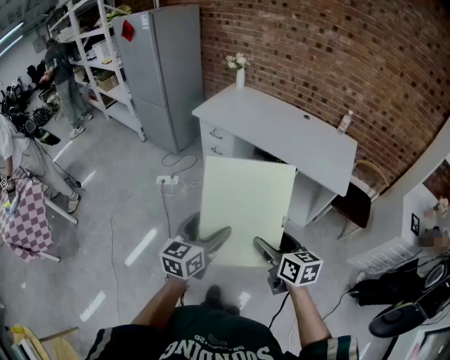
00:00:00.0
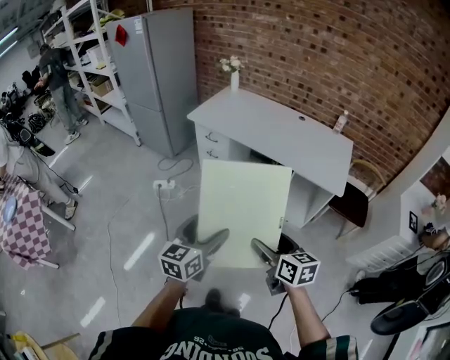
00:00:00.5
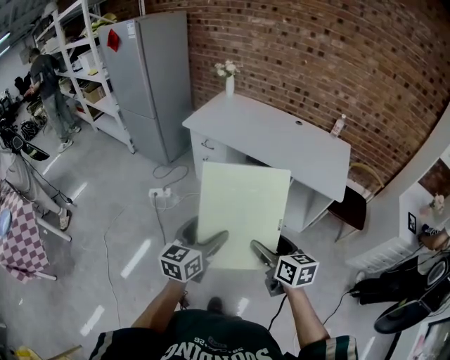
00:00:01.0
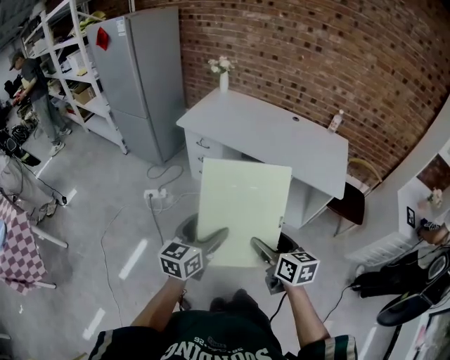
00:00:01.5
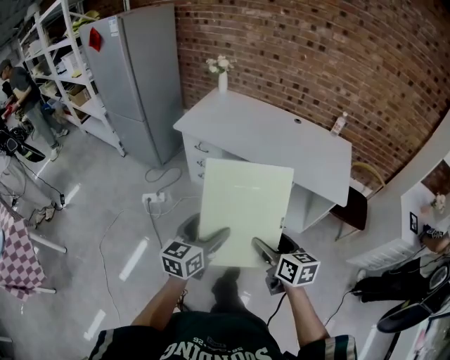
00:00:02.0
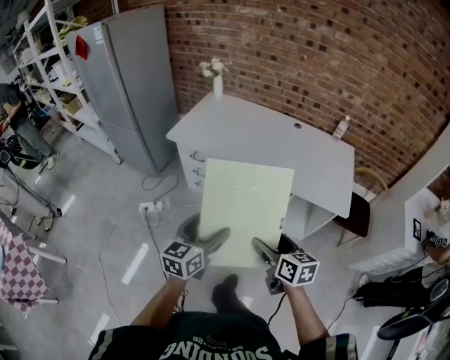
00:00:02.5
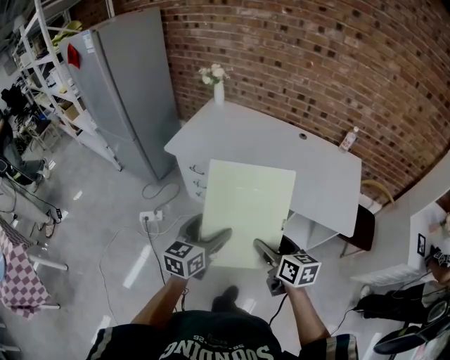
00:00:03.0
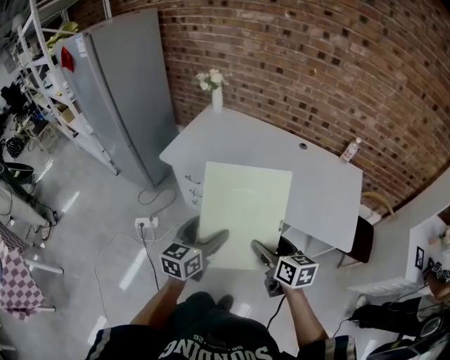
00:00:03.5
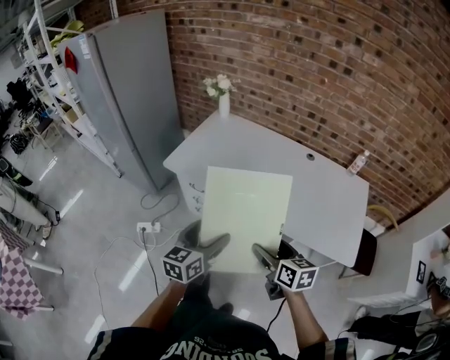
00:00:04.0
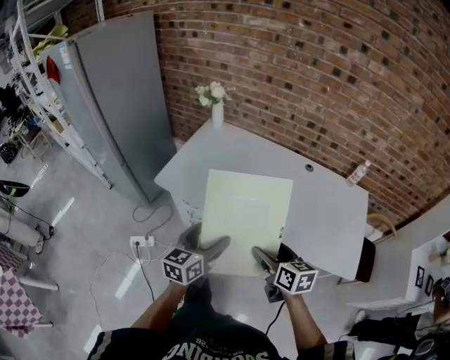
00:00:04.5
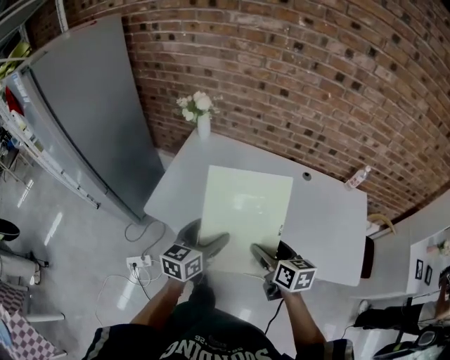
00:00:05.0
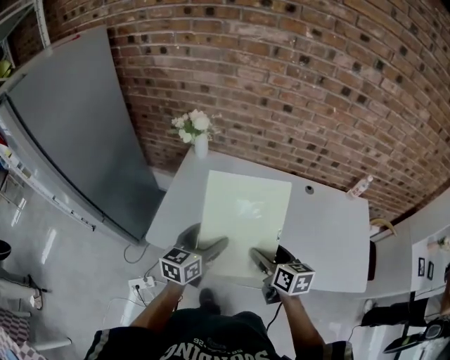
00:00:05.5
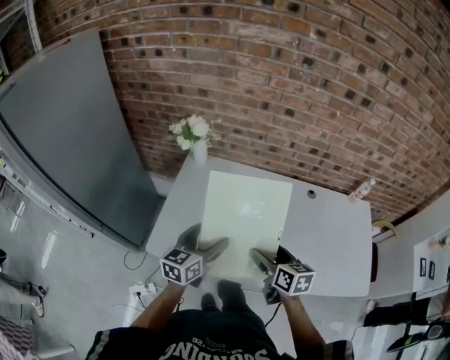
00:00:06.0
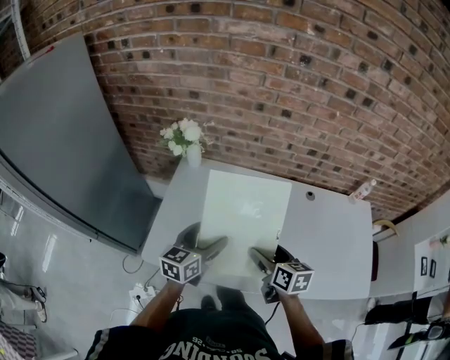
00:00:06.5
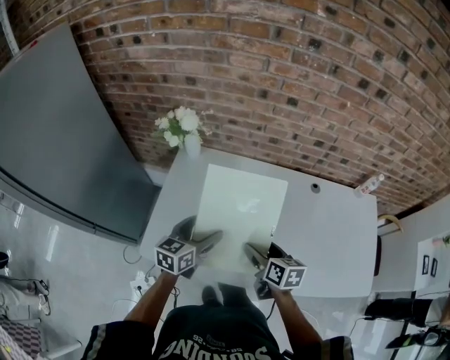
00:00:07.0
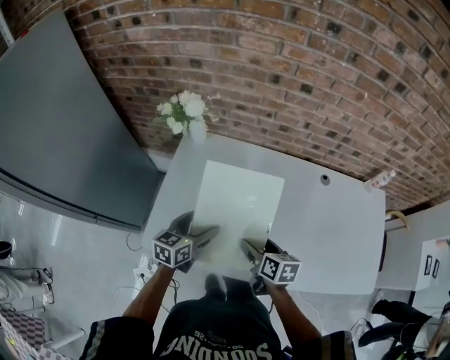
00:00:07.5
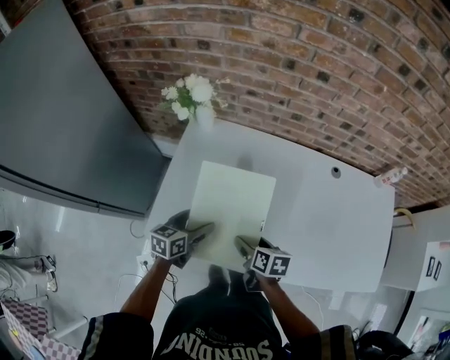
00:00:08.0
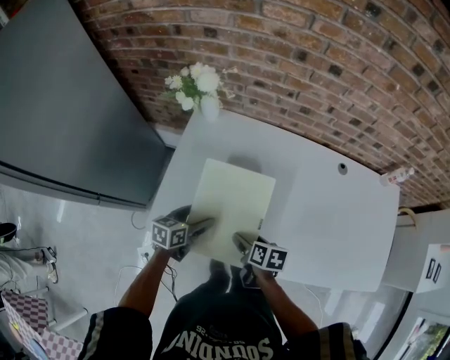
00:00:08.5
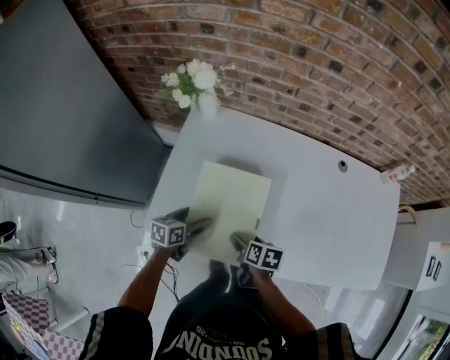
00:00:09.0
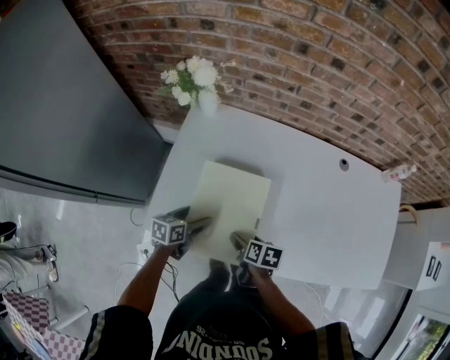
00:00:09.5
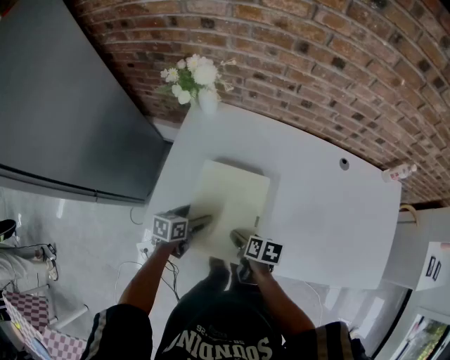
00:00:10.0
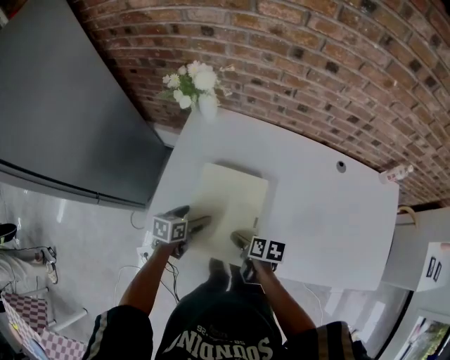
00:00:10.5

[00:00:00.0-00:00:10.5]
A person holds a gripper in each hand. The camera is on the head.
00:00:00.0 to 00:00:02.0: The grippers both shift forward by some 15 cm.
00:00:02.0 to 00:00:04.0: The grippers both shift forward by approximately 30 cm.
00:00:04.0 to 00:00:06.5: Both grippers are carried forward, roughly 40 cm.
00:00:06.5 to 00:00:08.5: The grippers both shift downward and to the left by about 20 cm. The left gripper changes its angle by about 30 degrees. The right gripper rotates some 30 degrees.
00:00:08.5 to 00:00:10.5: The grippers make only small movements.

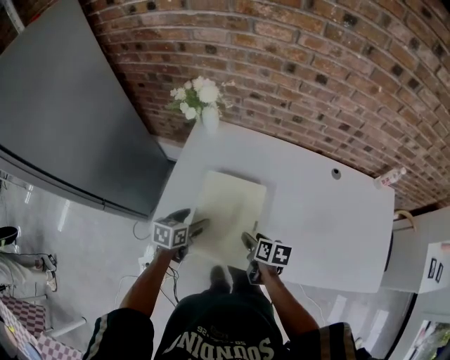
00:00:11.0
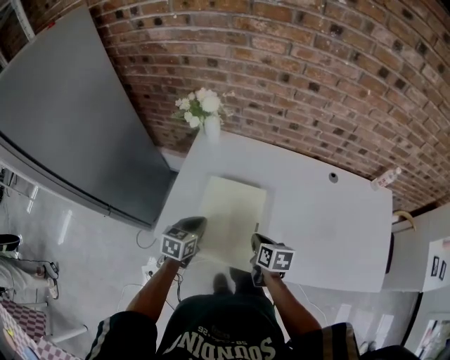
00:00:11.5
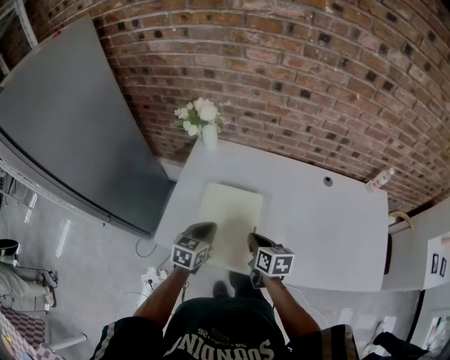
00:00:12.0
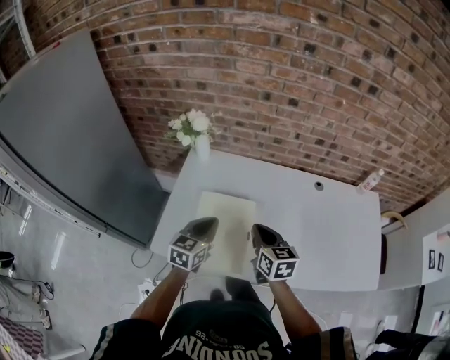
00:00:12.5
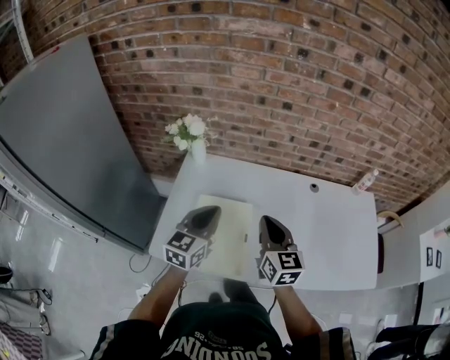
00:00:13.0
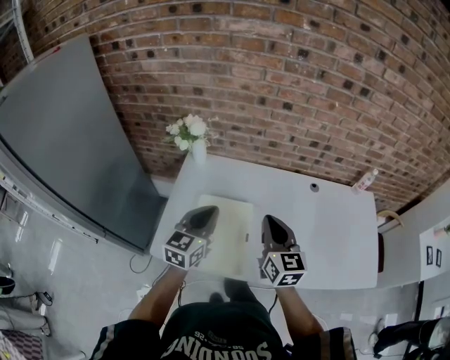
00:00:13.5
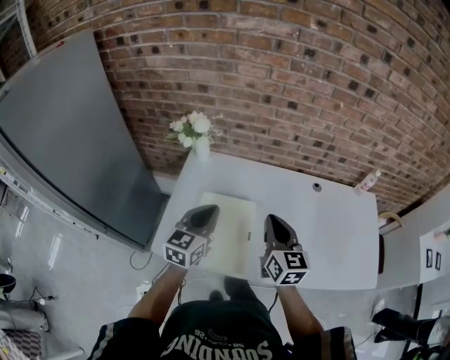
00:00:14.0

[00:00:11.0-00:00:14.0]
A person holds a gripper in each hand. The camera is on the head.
00:00:11.0 to 00:00:12.5: The right gripper goes roughly 20 cm upward, rotates some 40 degrees, and closes. The left gripper goes about 15 cm upward and to the right, changes its angle by approximately 30 degrees, and closes.
00:00:12.5 to 00:00:14.0: The grippers both shift upward by roughly 10 cm.

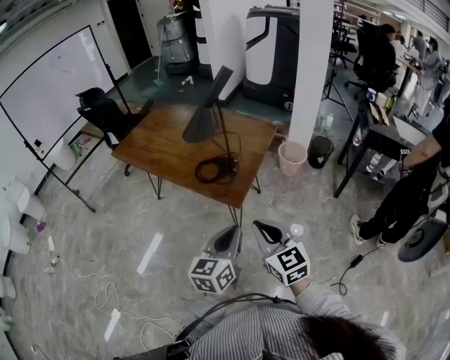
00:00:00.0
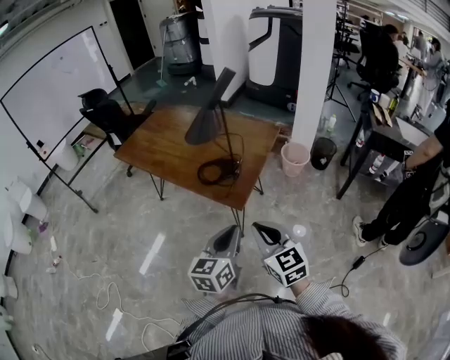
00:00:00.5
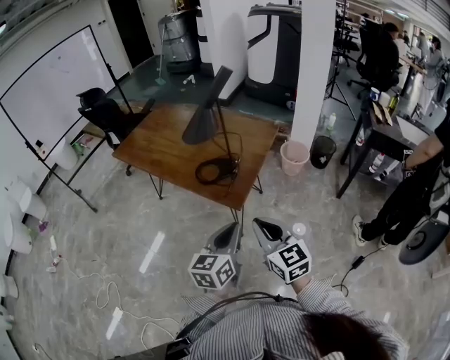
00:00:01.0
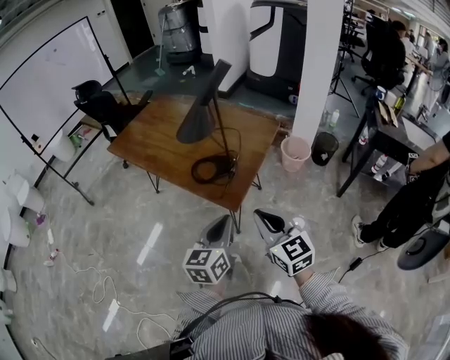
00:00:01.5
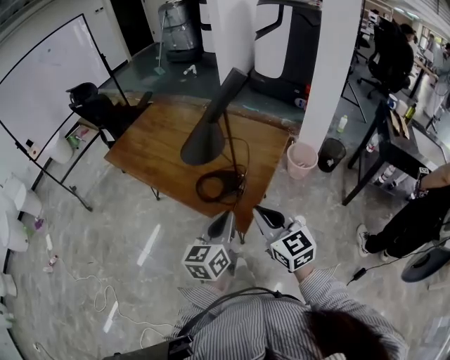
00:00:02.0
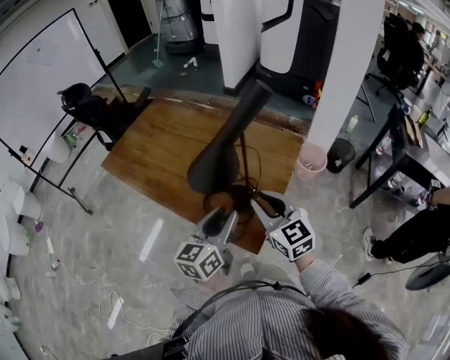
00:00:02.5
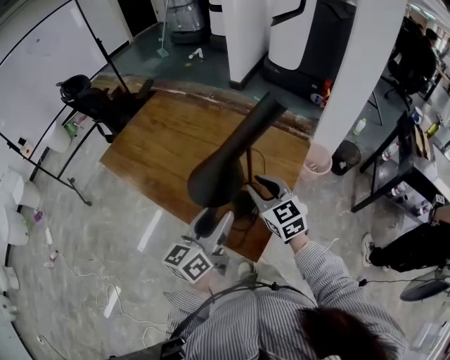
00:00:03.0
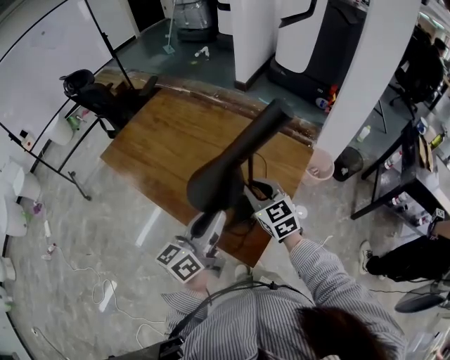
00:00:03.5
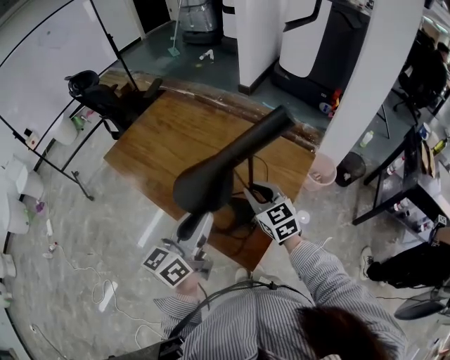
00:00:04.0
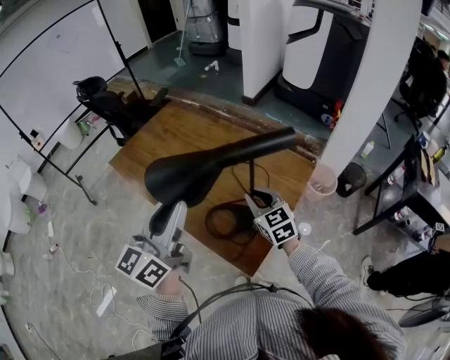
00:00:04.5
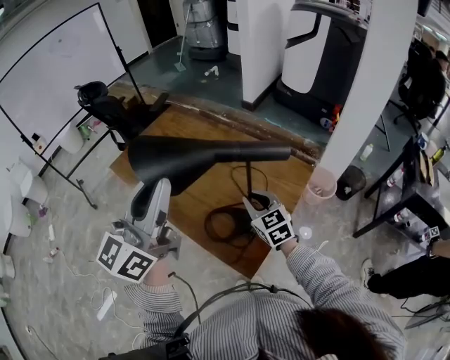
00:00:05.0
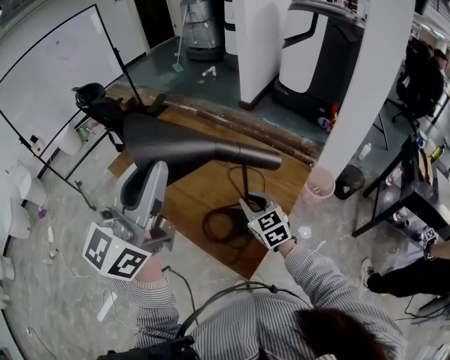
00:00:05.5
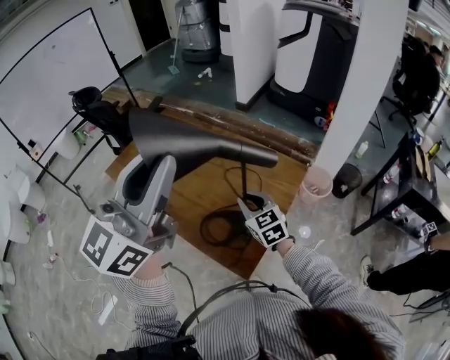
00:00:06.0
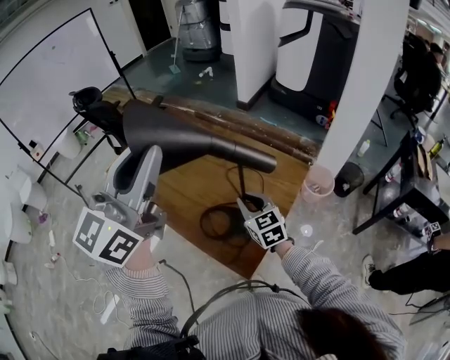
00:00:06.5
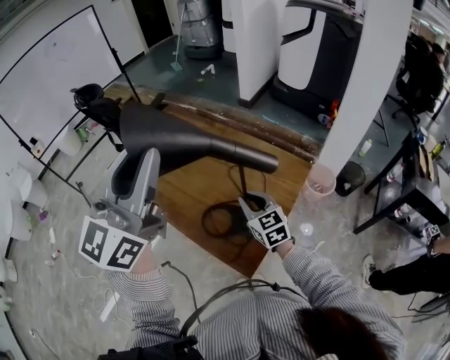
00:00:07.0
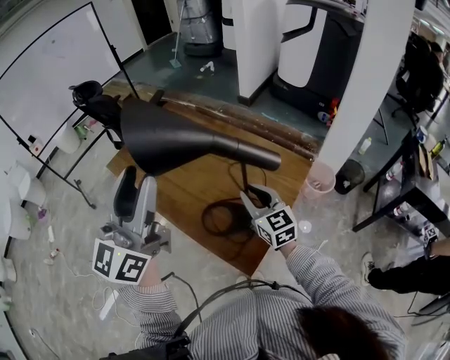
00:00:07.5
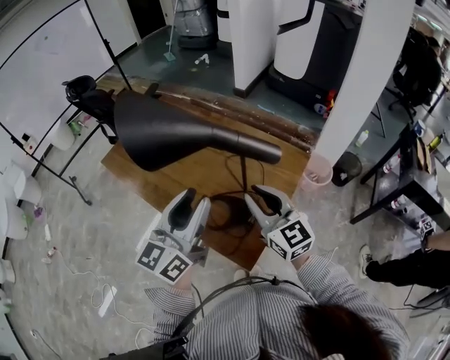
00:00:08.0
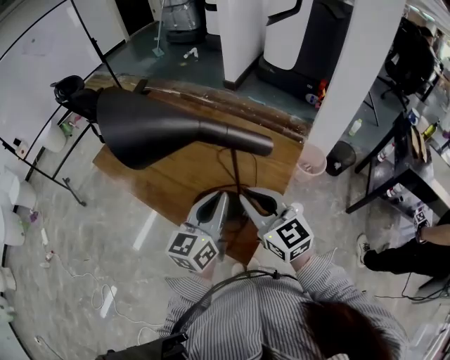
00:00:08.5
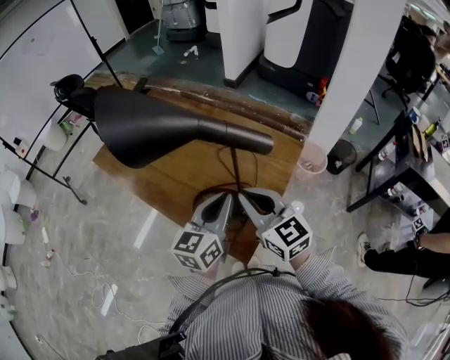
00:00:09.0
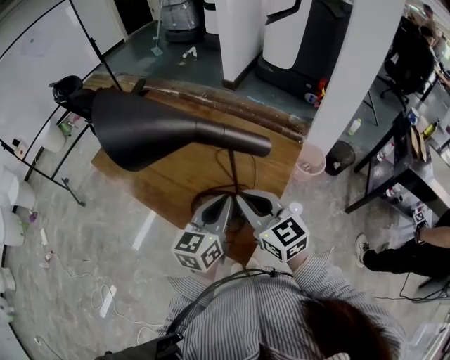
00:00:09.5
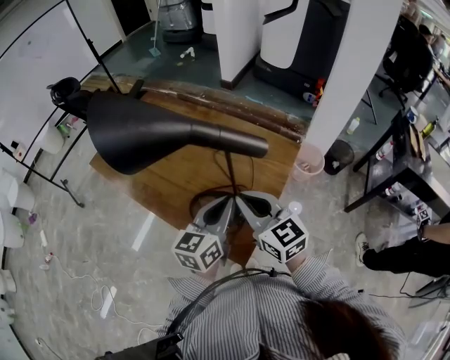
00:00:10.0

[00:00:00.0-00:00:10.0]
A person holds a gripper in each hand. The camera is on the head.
00:00:00.0 to 00:00:02.0: The two grippers go some 20 cm forward.
00:00:02.0 to 00:00:04.0: The left gripper travels forward and to the left by about 20 cm, and opens up. Meanwhile the right gripper is displaced forward by approximately 25 cm.
00:00:04.0 to 00:00:06.0: The left gripper shifts approximately 25 cm upward, and turns by approximately 40 degrees.
00:00:06.0 to 00:00:08.0: The left gripper goes roughly 20 cm downward, and rotates about 20 degrees; the right gripper is displaced upward and backward by some 10 cm, and swivels about 20 degrees.
00:00:08.0 to 00:00:10.0: The left gripper heads downward and to the right, covering roughly 15 cm, and closes its fingers.

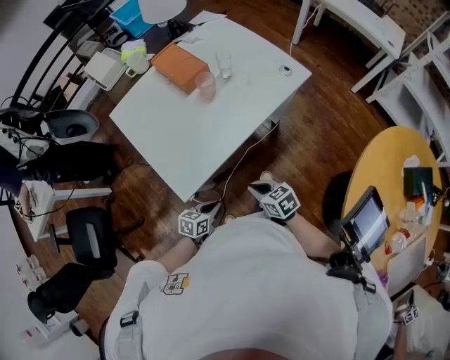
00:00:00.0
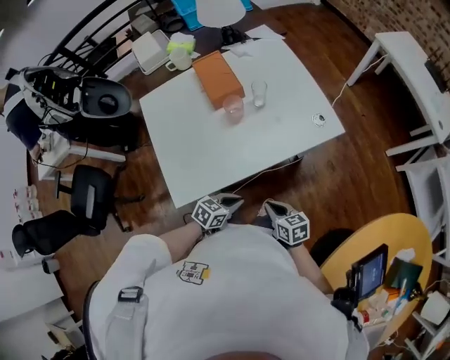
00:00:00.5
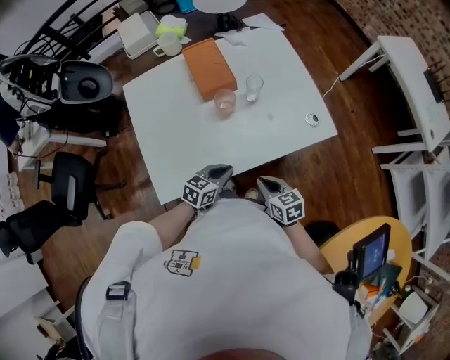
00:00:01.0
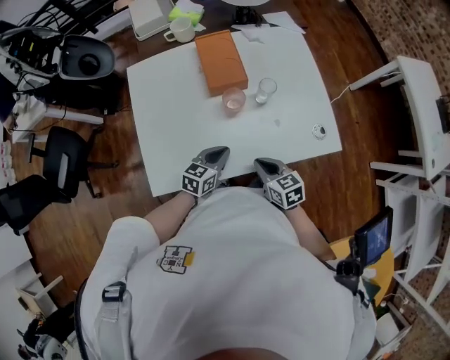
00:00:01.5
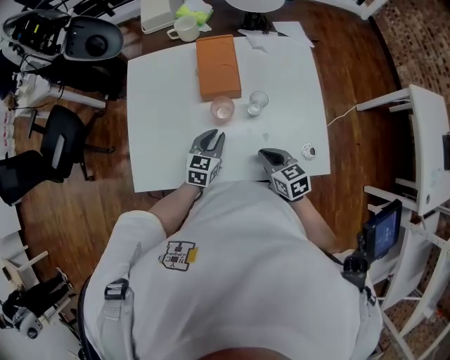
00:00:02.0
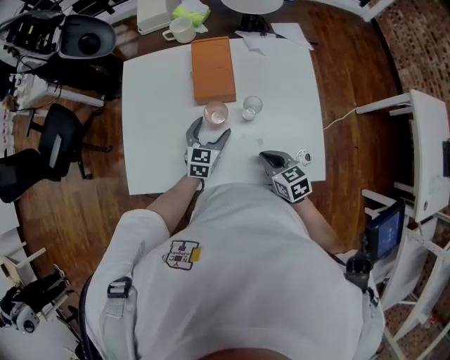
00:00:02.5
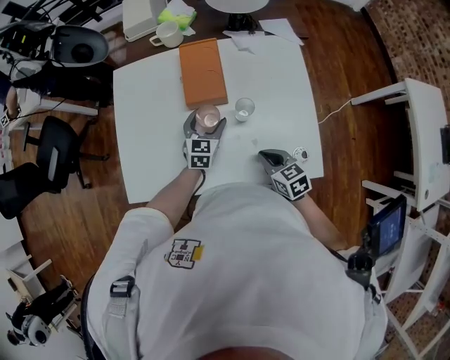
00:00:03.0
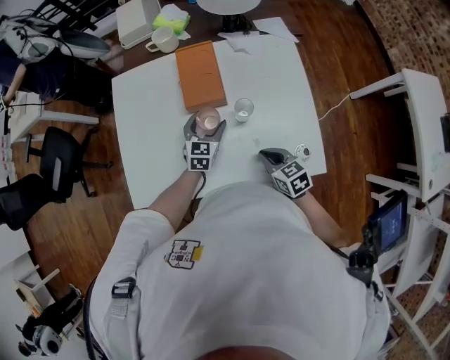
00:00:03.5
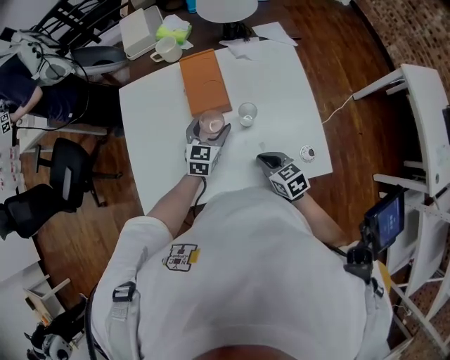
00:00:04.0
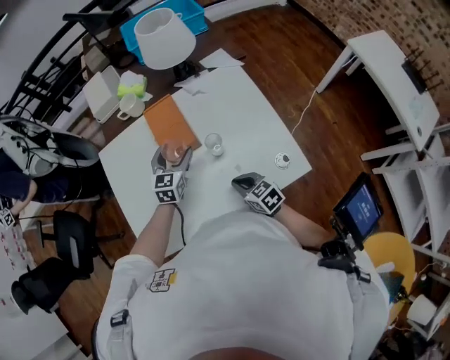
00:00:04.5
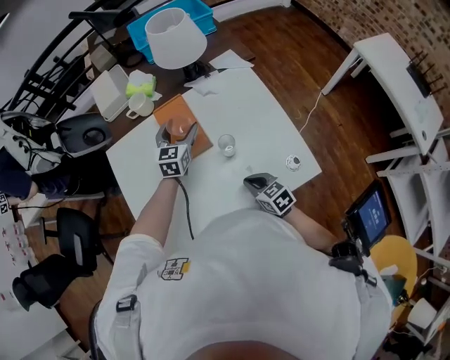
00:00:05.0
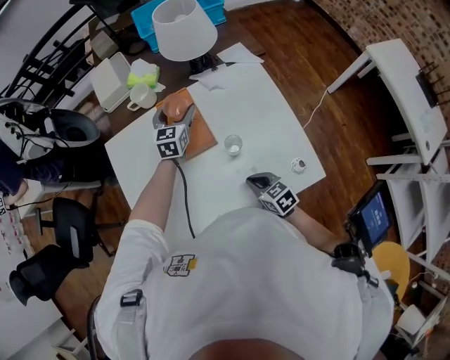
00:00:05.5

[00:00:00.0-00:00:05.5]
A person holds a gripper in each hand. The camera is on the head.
00:00:00.0 to 00:00:02.0: The right gripper changes place by some 35 cm, and rotates about 30 degrees, while the left gripper ends up some 40 cm from where it was, and swivels some 50 degrees.
00:00:02.0 to 00:00:03.5: The left gripper goes roughly 10 cm forward, and opens its fingers.
00:00:03.5 to 00:00:05.5: The left gripper heads forward and upward, covering about 20 cm.
